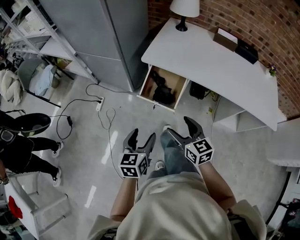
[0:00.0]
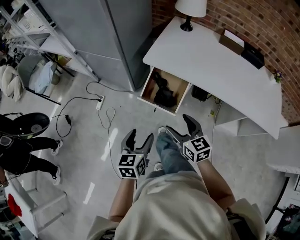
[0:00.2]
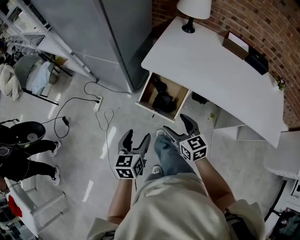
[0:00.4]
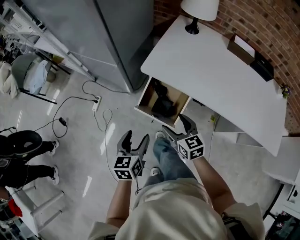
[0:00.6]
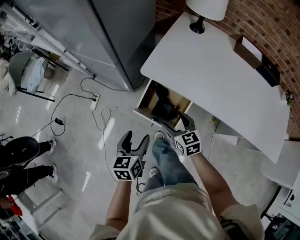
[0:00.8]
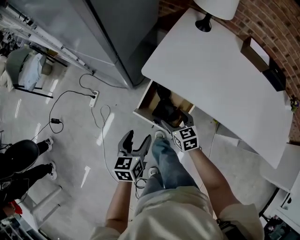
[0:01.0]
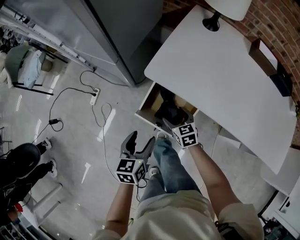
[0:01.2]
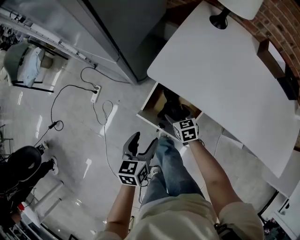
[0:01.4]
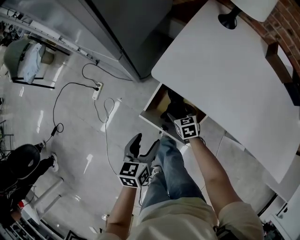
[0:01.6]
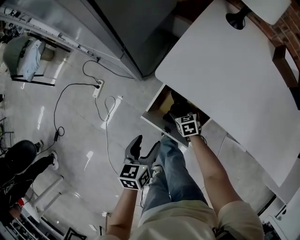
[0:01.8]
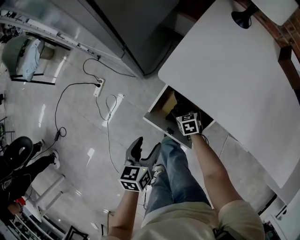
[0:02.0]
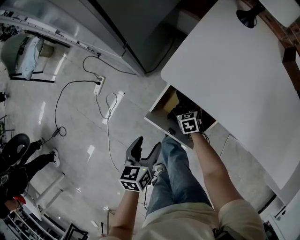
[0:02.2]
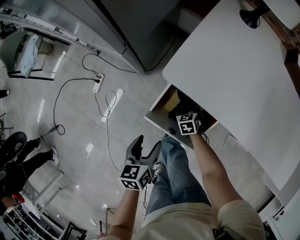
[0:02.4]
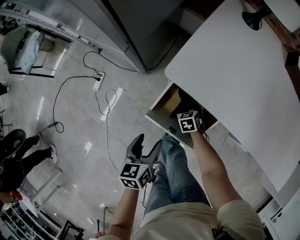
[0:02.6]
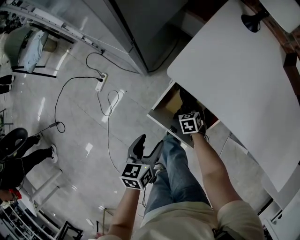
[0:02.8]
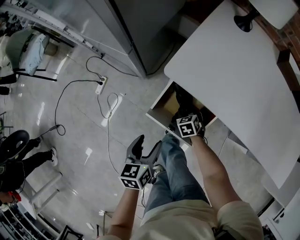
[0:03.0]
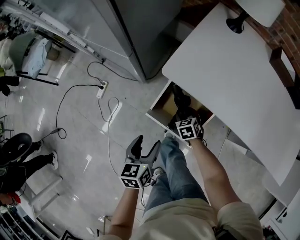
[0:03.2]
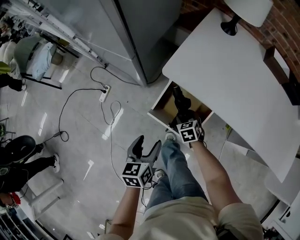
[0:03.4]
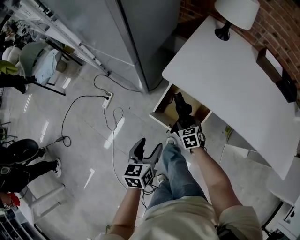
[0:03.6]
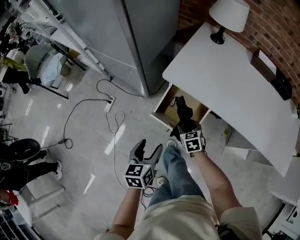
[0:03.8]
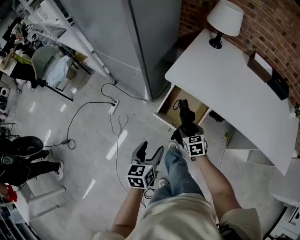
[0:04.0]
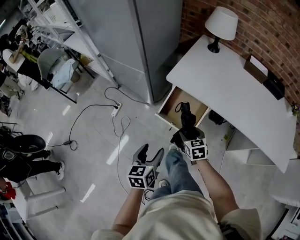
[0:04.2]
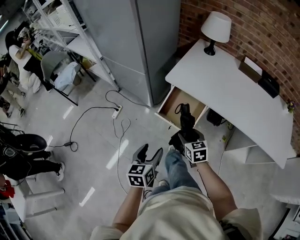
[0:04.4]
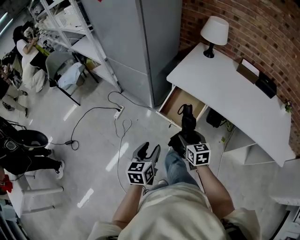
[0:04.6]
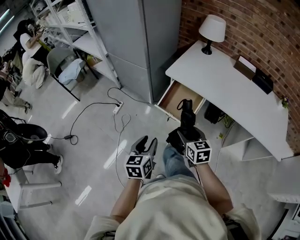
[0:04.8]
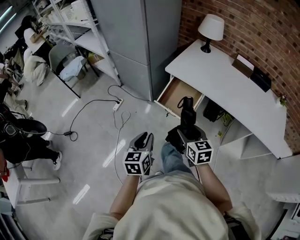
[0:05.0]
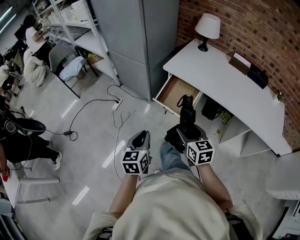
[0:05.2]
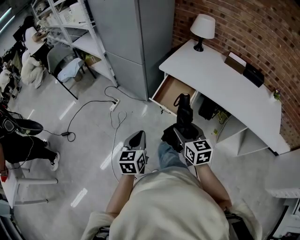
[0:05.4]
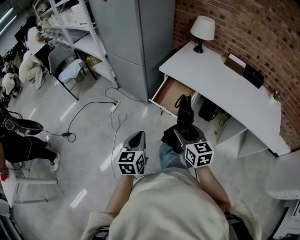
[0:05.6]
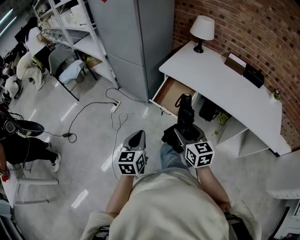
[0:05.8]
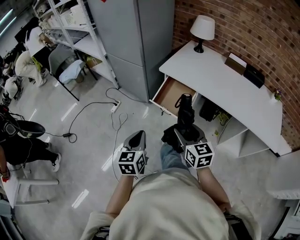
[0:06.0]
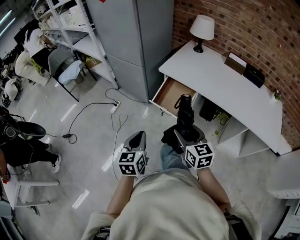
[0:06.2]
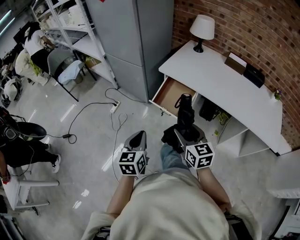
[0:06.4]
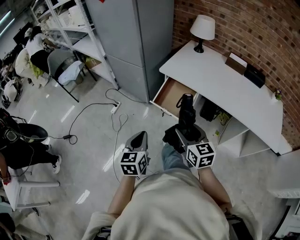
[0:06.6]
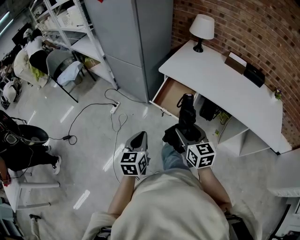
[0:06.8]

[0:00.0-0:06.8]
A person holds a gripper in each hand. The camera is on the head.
0:00.0 to 0:01.4: The right gripper travels forward and downward by some 40 cm, and turns by about 30 degrees; the left gripper is displaced forward and downward by roughly 25 cm.
0:01.4 to 0:02.8: The right gripper heads downward, covering roughly 15 cm, and turns by roughly 20 degrees. Meanwhile the left gripper travels downward by about 5 cm.
0:02.8 to 0:04.0: The left gripper shifts some 20 cm backward and upward, while the right gripper moves upward and backward, some 30 cm, and rotates roughly 20 degrees.
0:04.0 to 0:05.4: The right gripper heads backward and upward, covering about 35 cm, and turns by some 20 degrees, while the left gripper is displaced backward and upward by about 20 cm, and closes its fingers.
0:05.4 to 0:06.8: The grippers make only small movements.

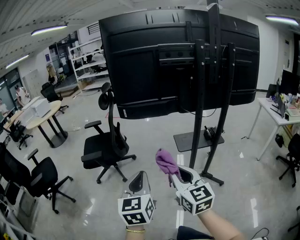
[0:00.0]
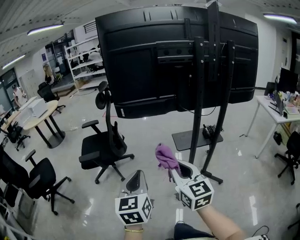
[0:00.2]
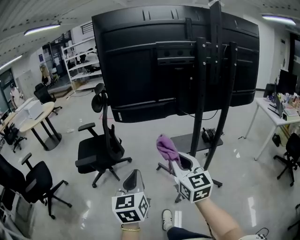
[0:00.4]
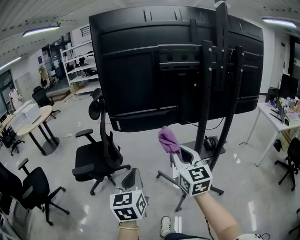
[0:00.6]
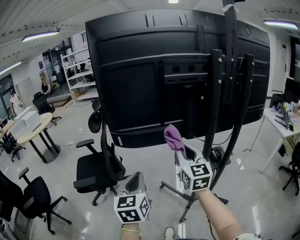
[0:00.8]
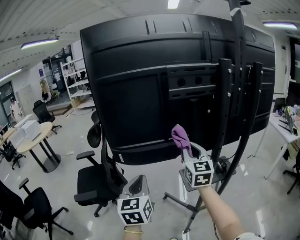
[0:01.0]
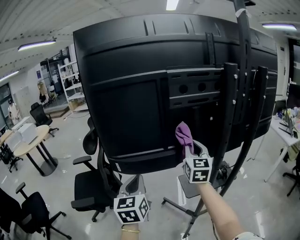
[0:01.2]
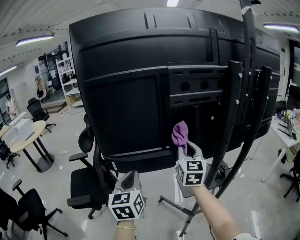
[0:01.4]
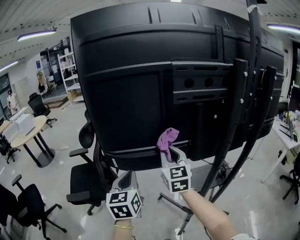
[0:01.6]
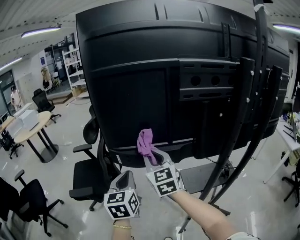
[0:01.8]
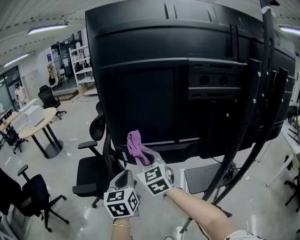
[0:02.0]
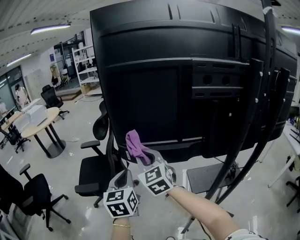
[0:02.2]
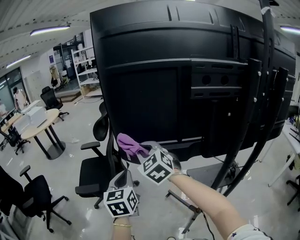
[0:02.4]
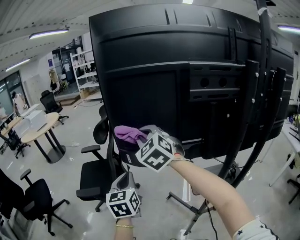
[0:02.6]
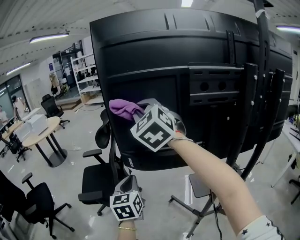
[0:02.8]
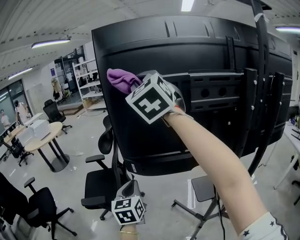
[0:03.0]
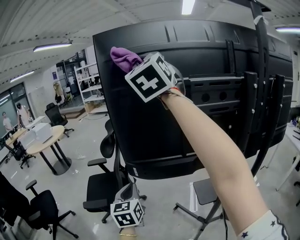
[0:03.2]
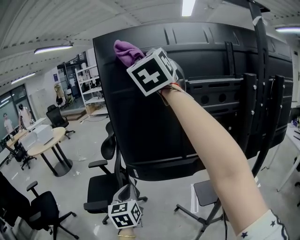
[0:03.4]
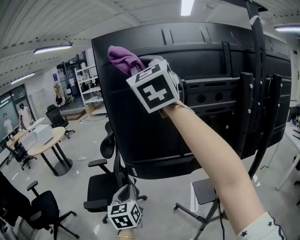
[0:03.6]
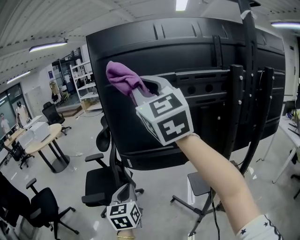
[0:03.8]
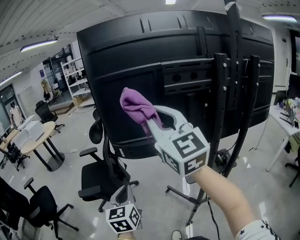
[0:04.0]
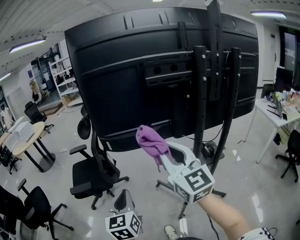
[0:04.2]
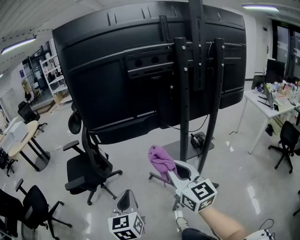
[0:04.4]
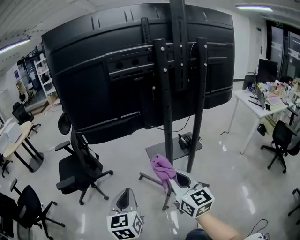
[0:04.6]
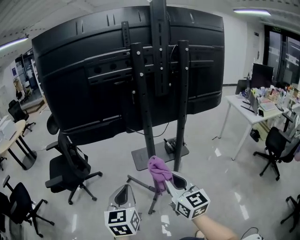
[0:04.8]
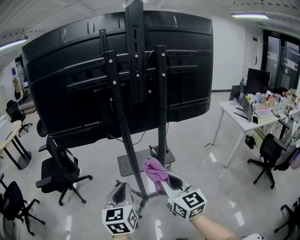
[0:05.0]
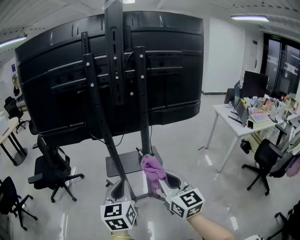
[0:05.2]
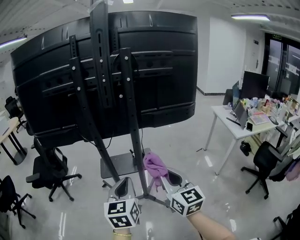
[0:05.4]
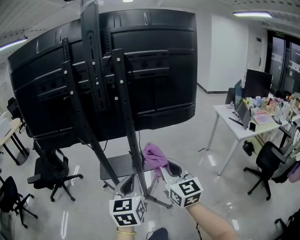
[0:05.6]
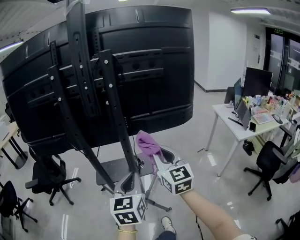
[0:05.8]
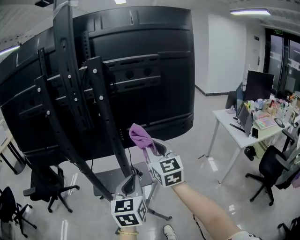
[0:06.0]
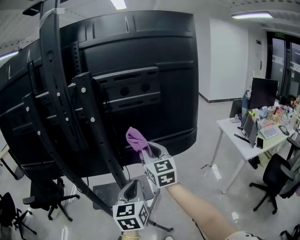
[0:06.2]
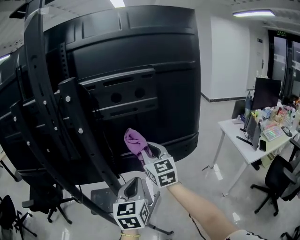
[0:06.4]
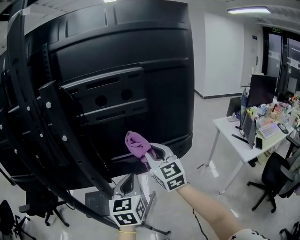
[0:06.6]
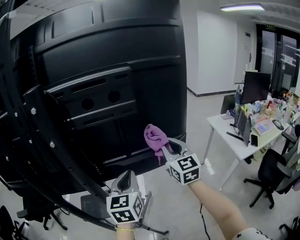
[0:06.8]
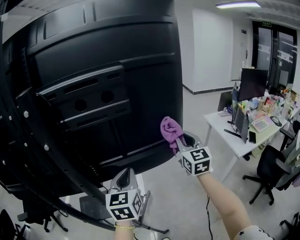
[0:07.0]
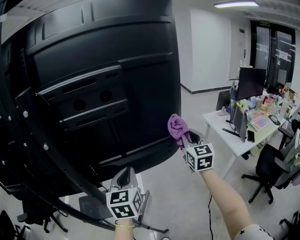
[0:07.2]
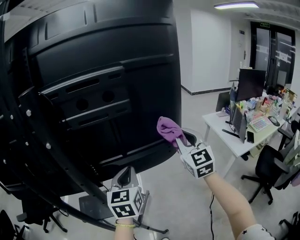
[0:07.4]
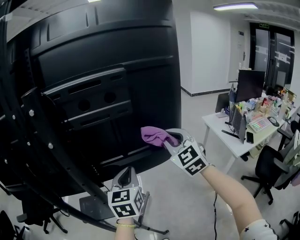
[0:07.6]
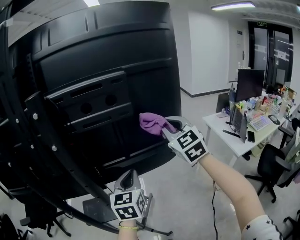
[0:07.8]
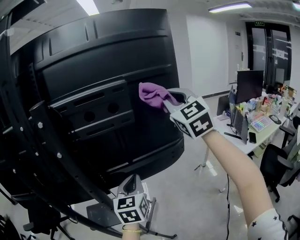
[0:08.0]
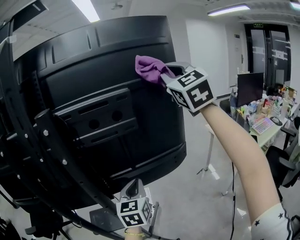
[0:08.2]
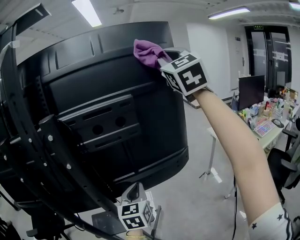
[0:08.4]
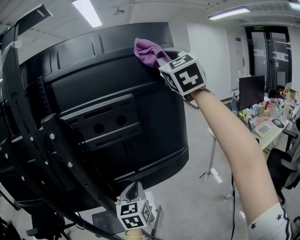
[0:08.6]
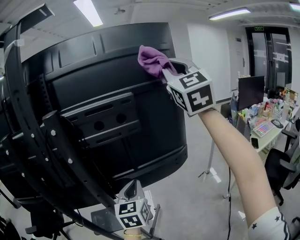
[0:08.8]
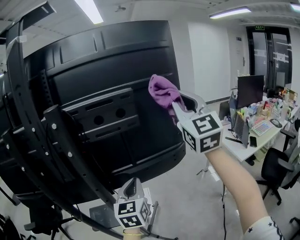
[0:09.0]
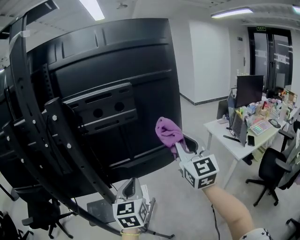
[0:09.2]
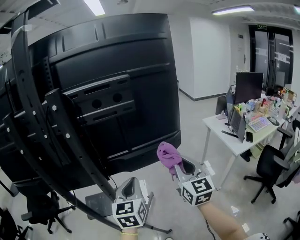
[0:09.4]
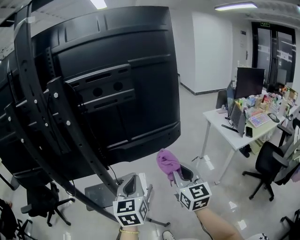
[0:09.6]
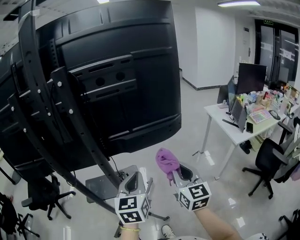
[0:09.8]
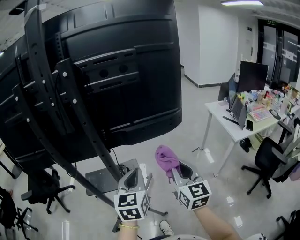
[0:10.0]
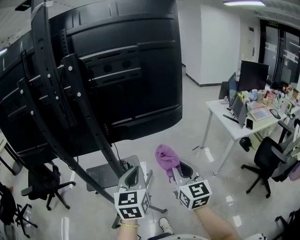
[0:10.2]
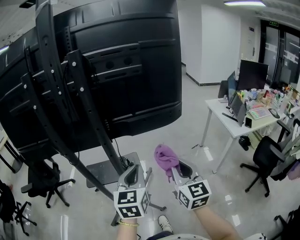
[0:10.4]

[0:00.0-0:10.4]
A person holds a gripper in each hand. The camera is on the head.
0:00.0 to 0:01.4: The grippers both shift forward by some 40 cm. The right gripper changes its angle by approximately 30 degrees.
0:01.4 to 0:03.0: The right gripper moves upward and to the left, roughly 40 cm, and swivels approximately 40 degrees, while the left gripper moves to the left, some 10 cm.
0:03.0 to 0:04.4: The right gripper heads backward, downward and to the right, covering some 50 cm, and twists approximately 40 degrees clockwise, seen from behind, while the left gripper is displaced backward by roughly 25 cm.
0:04.4 to 0:06.0: Both grippers are carried to the right, roughly 60 cm.
0:06.0 to 0:07.4: The right gripper is displaced to the right and forward by approximately 25 cm; the left gripper shifts approximately 25 cm forward and to the right.
0:07.4 to 0:09.0: The left gripper changes place by roughly 5 cm. The right gripper goes roughly 20 cm upward.
0:09.0 to 0:10.4: The right gripper moves downward and backward, roughly 40 cm, and rotates roughly 30 degrees. Meanwhile the left gripper travels backward by approximately 15 cm.

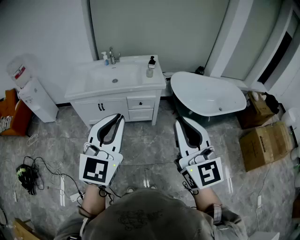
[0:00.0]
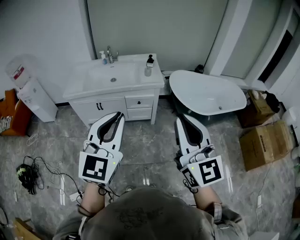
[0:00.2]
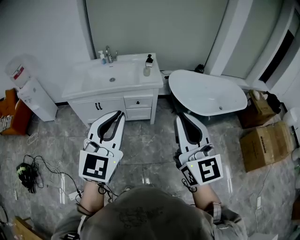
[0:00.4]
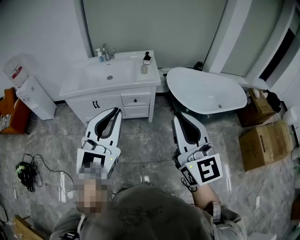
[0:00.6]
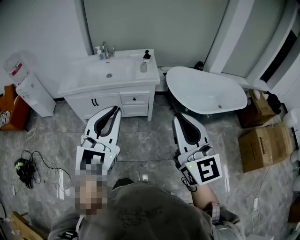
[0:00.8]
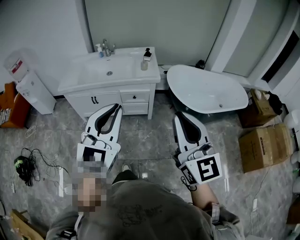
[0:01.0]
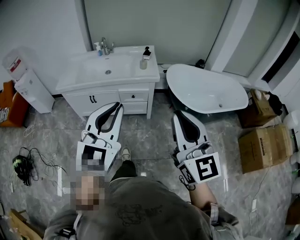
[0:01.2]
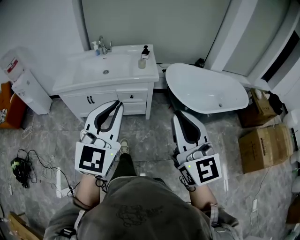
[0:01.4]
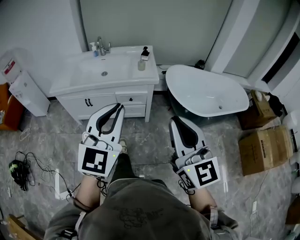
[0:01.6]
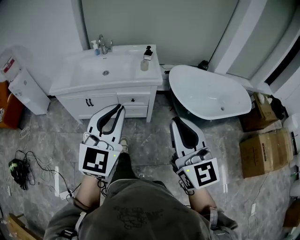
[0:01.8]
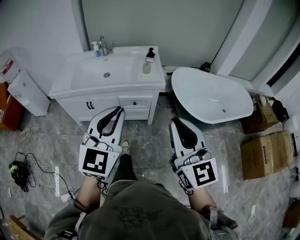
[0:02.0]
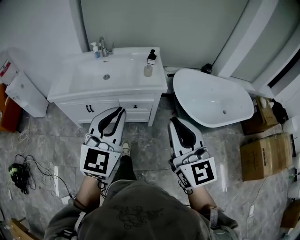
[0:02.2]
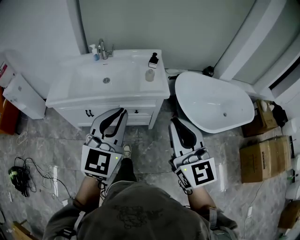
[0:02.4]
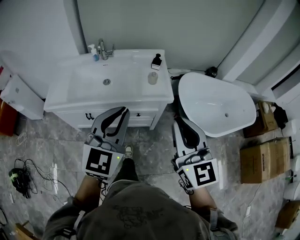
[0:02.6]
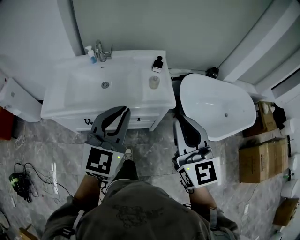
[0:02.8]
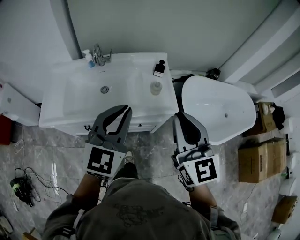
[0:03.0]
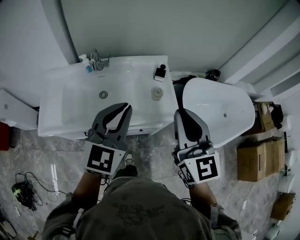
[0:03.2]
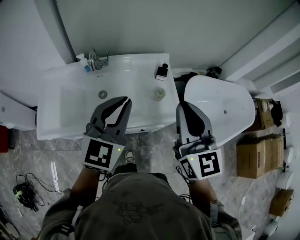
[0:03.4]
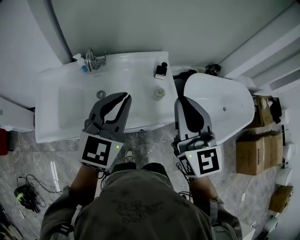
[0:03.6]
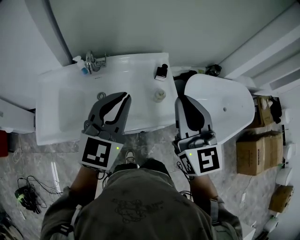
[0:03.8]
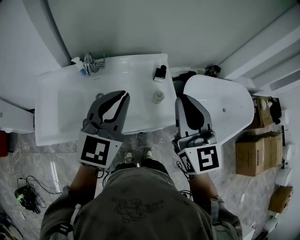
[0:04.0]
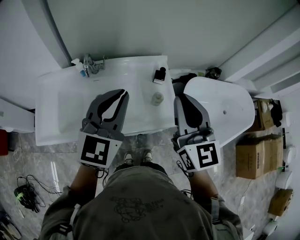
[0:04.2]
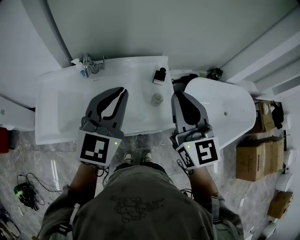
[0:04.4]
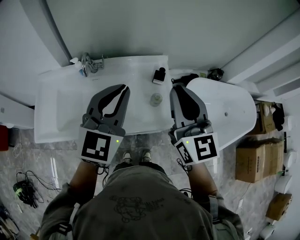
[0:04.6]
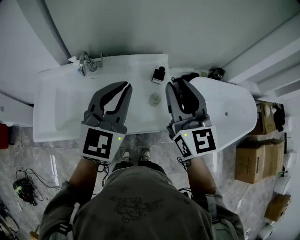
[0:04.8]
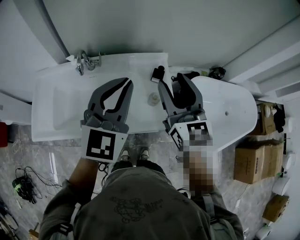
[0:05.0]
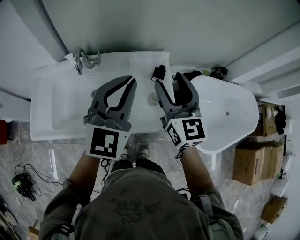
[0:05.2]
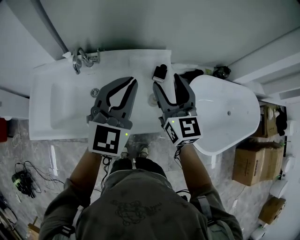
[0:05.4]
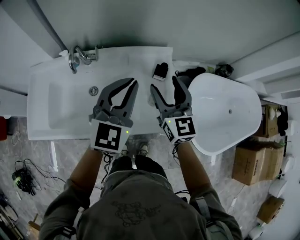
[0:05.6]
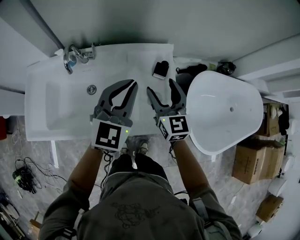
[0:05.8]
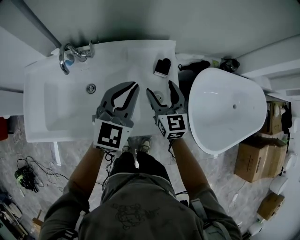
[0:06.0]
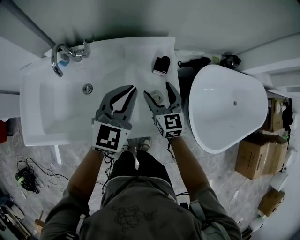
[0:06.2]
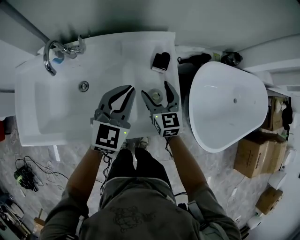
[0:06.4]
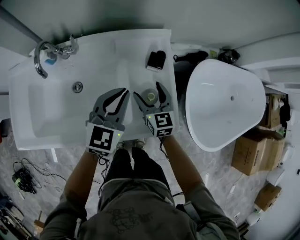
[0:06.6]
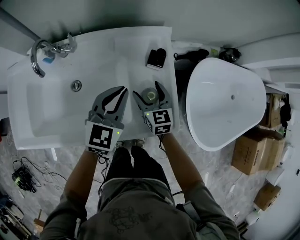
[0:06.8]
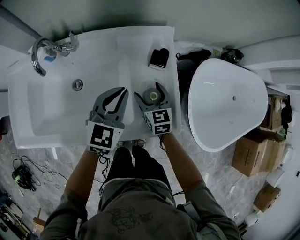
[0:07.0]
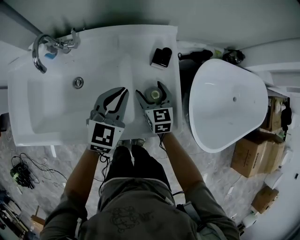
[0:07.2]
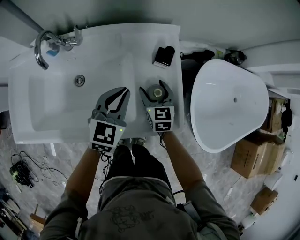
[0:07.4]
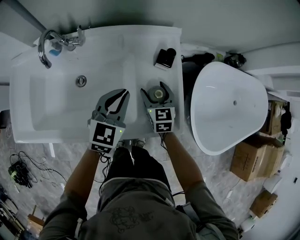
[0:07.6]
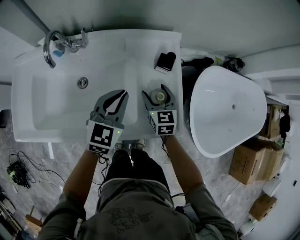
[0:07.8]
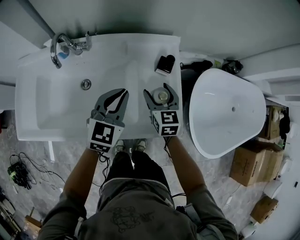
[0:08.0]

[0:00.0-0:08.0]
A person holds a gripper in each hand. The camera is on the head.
0:00.0 to 0:01.6: The right gripper travels forward, downward and to the right by roughly 15 cm. Meanwhile the left gripper travels forward, to the right and downward by approximately 15 cm.
0:01.6 to 0:03.2: The pair of grippers is taken forward, approximately 50 cm.
0:03.2 to 0:04.8: The grippers both shift forward by some 15 cm.
0:04.8 to 0:06.4: The left gripper goes approximately 25 cm downward and forward. The right gripper shifts approximately 35 cm downward, swivels some 20 degrees, and opens its fingers.
0:06.4 to 0:08.0: The right gripper reaches approximately 10 cm downward, then returns.
